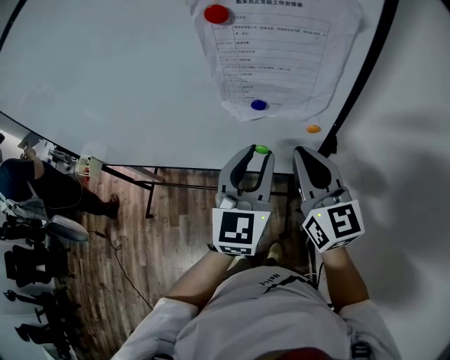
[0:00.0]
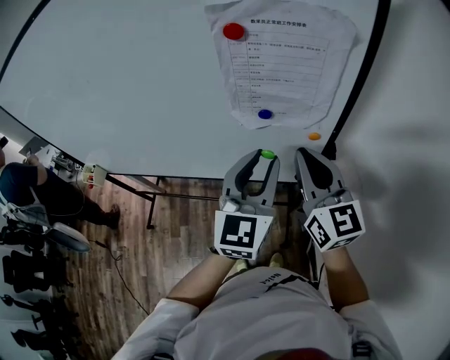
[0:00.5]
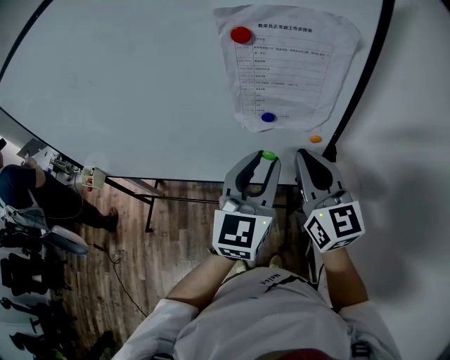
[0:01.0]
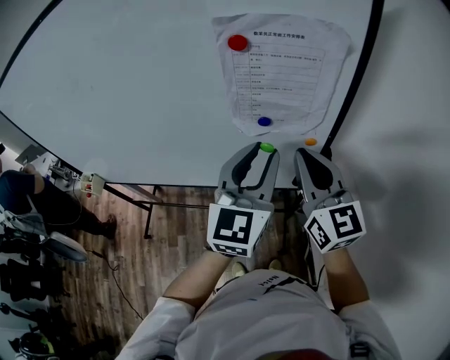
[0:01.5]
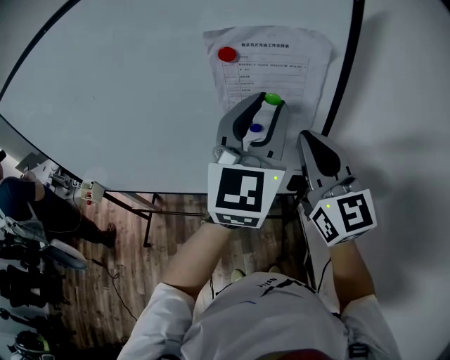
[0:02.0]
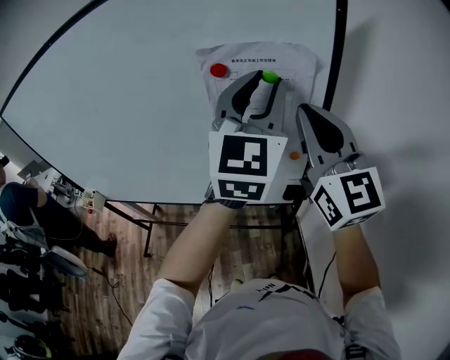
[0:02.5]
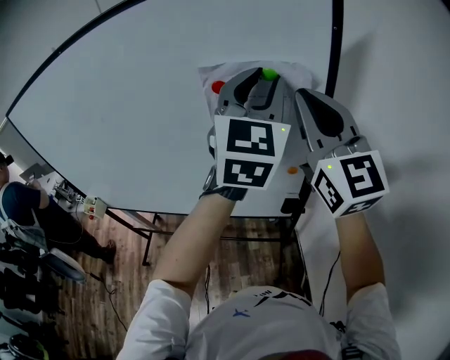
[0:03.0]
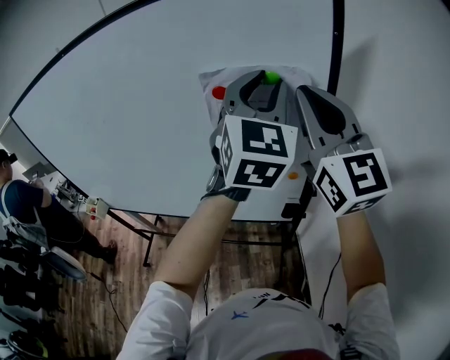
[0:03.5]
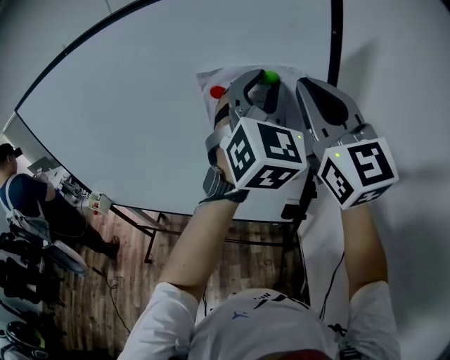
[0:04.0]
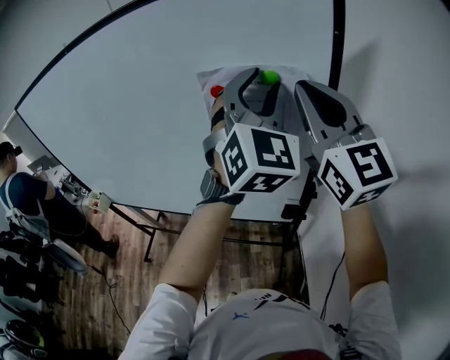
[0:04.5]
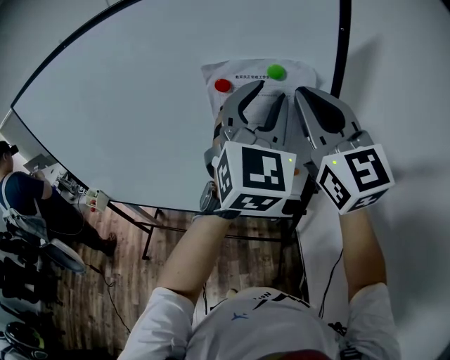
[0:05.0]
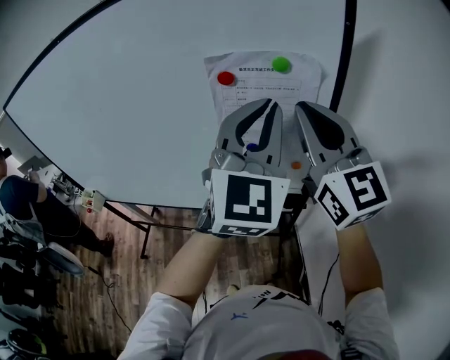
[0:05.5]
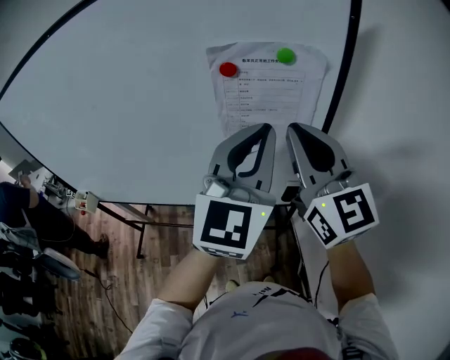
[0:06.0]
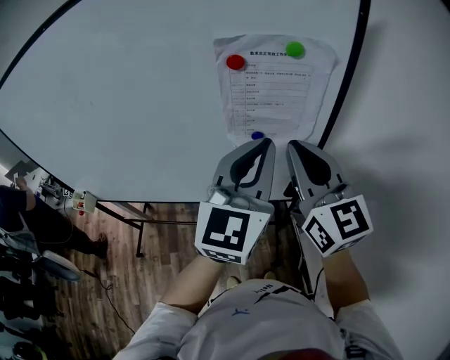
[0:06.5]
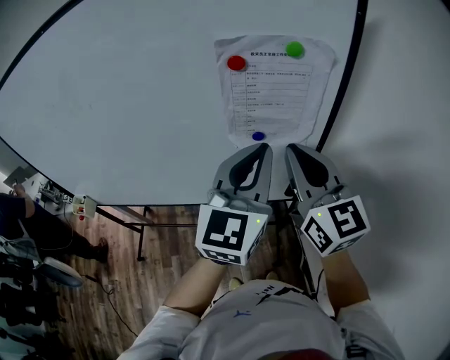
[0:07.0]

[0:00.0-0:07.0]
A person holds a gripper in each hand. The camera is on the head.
0:00.0 to 0:02.0: Both grippers move upward, approximately 15 cm.
0:02.0 to 0:03.5: The right gripper heads upward, covering some 15 cm. Meanwhile the left gripper moves upward and forward, some 10 cm.
0:03.5 to 0:05.0: The grippers make only small movements.
0:05.0 to 0:07.0: The right gripper moves downward, about 15 cm. The left gripper goes some 15 cm downward, backward and to the left, rotates some 30 degrees, and closes its fingers.

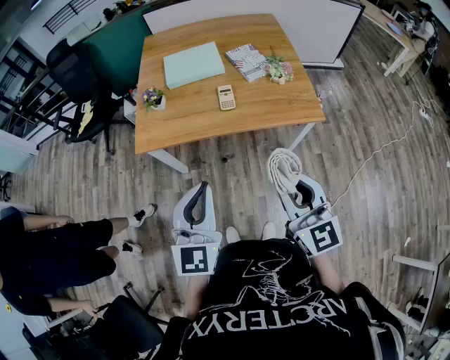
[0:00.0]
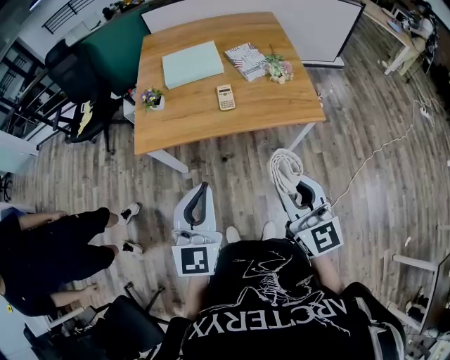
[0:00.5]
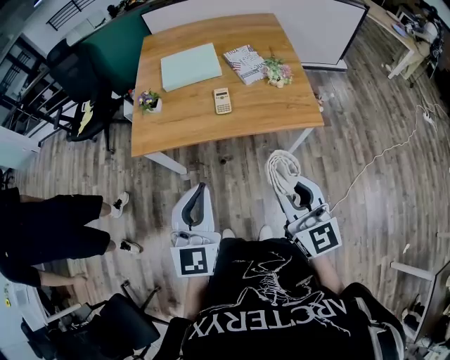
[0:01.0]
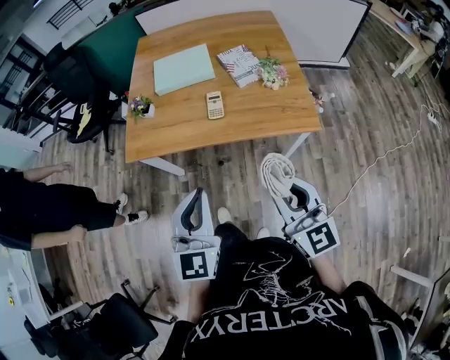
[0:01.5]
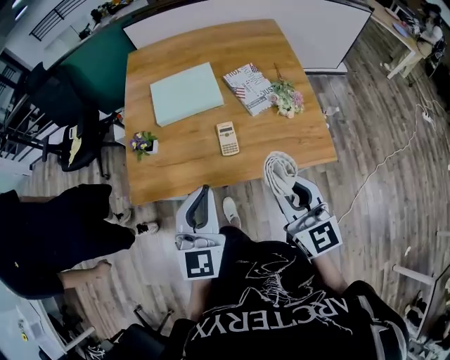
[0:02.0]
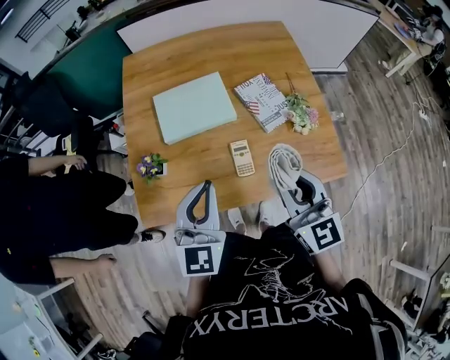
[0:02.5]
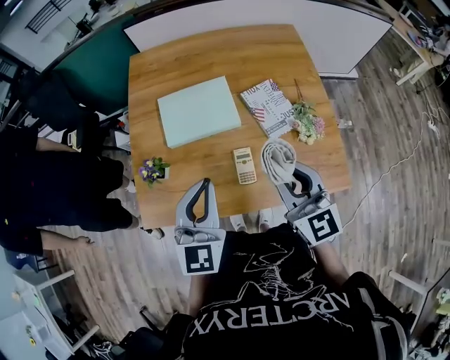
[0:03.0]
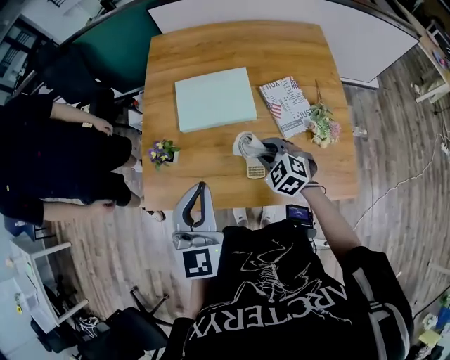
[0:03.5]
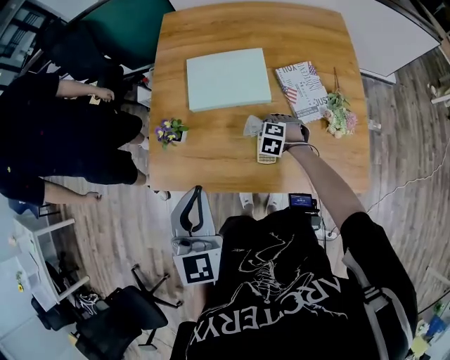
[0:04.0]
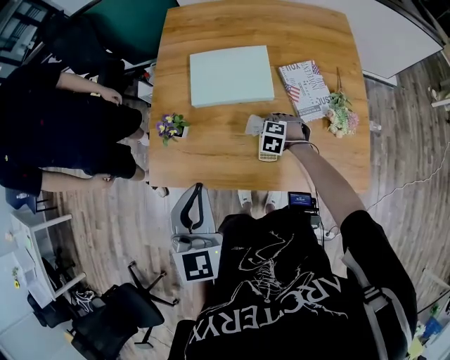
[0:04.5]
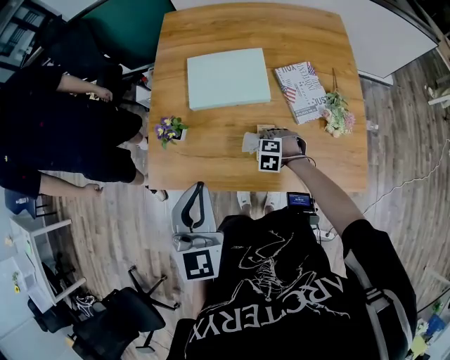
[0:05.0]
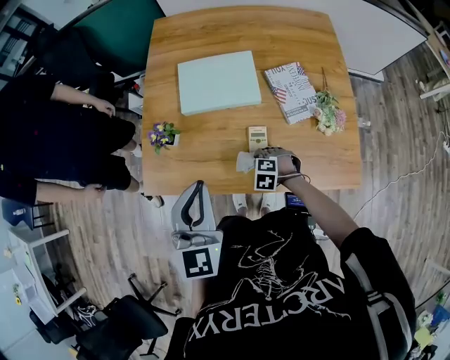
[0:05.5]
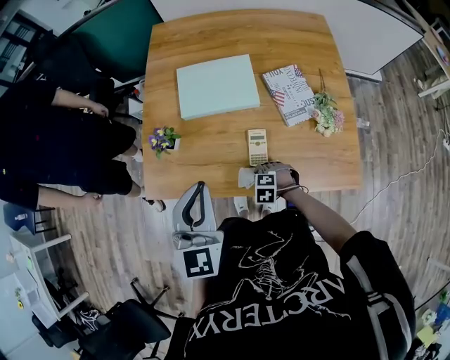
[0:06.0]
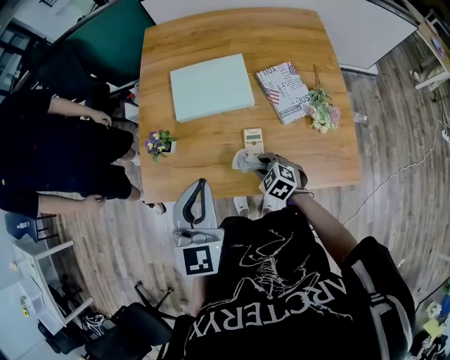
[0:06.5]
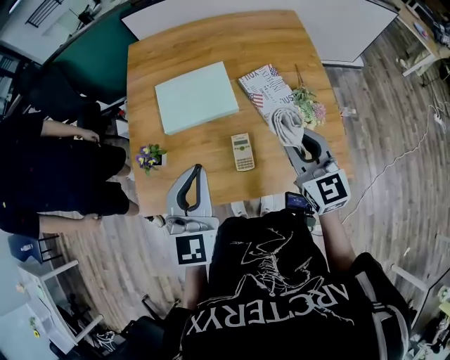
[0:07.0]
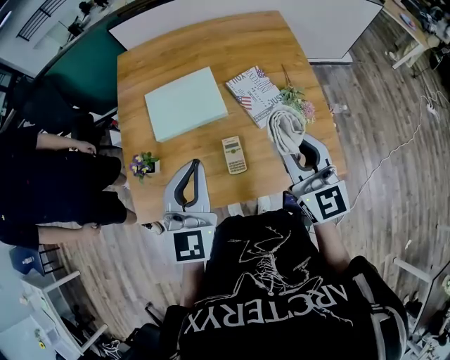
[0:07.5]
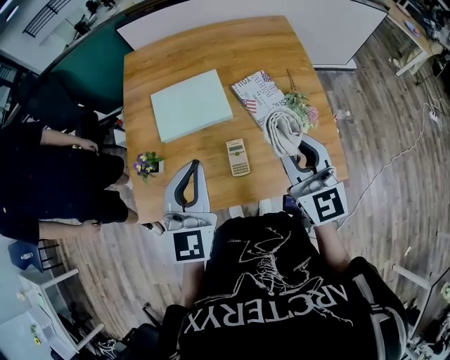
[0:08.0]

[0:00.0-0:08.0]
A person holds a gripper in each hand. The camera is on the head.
0:00.0 to 0:02.0: Both grippers travel together forward, roughly 25 cm.
0:02.0 to 0:04.0: The left gripper heads forward and to the left, covering some 15 cm. The right gripper is displaced downward and forward by some 50 cm, and angles its fingers downward, by some 60 degrees.
0:04.0 to 0:06.0: The right gripper shifts by approximately 20 cm.
0:06.0 to 0:08.0: The left gripper moves some 10 cm; the right gripper is displaced upward by about 40 cm, and tips its fingers upward by approximately 80 degrees.

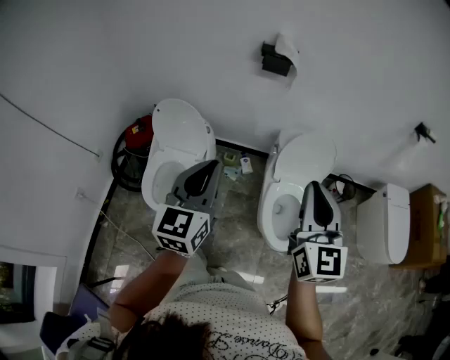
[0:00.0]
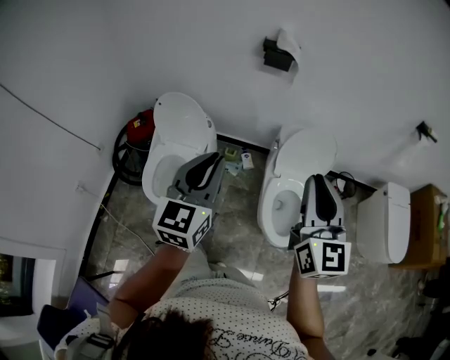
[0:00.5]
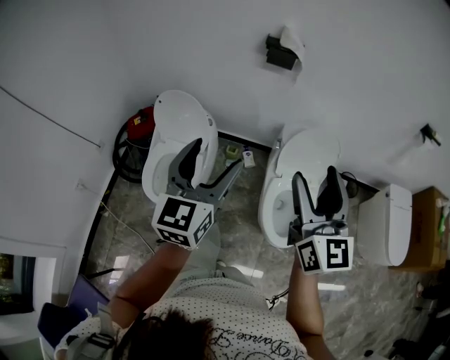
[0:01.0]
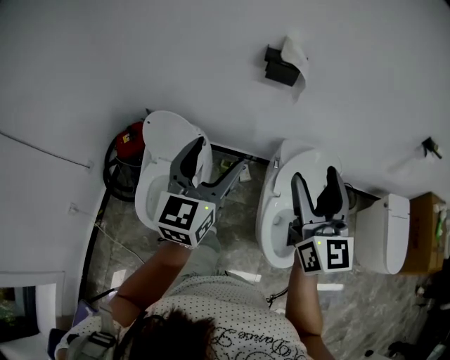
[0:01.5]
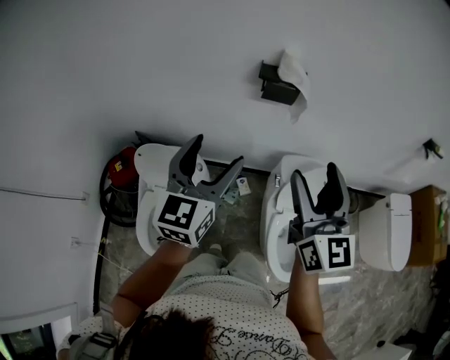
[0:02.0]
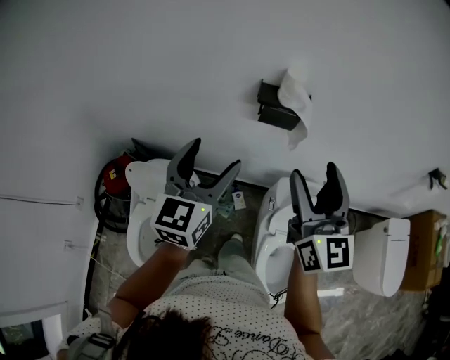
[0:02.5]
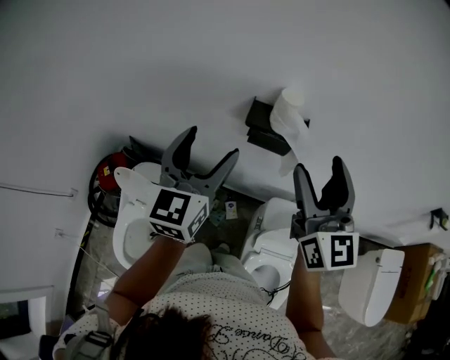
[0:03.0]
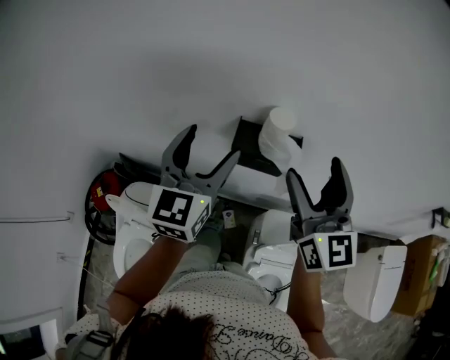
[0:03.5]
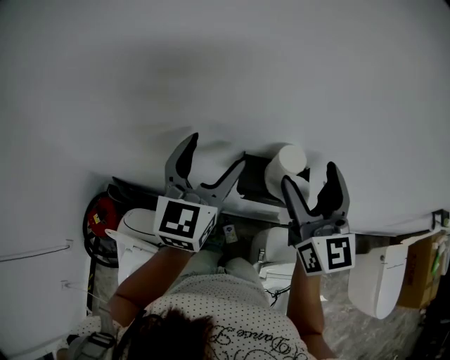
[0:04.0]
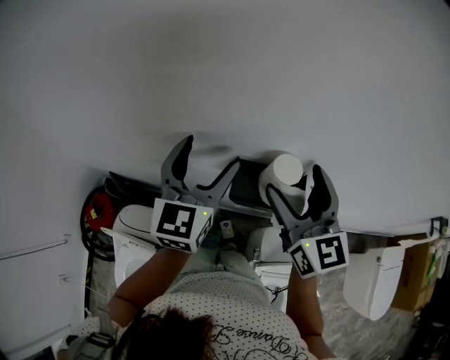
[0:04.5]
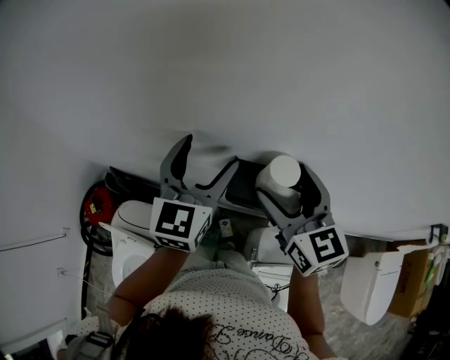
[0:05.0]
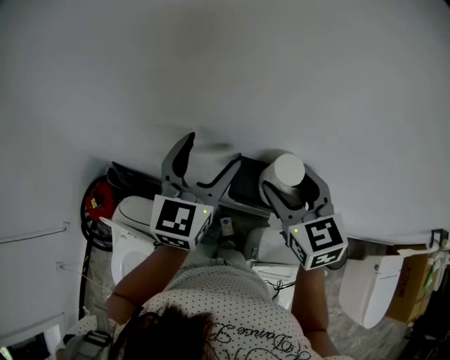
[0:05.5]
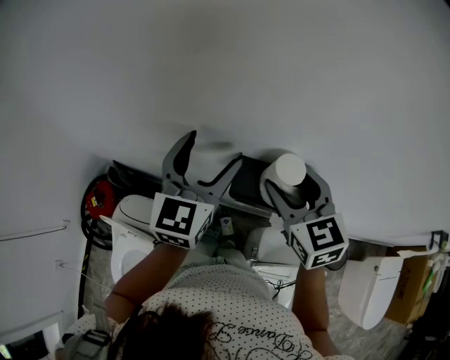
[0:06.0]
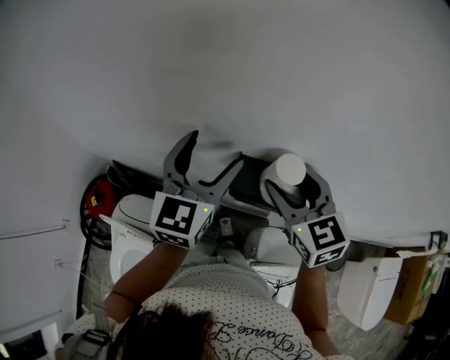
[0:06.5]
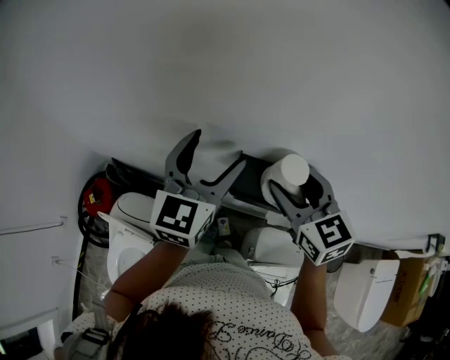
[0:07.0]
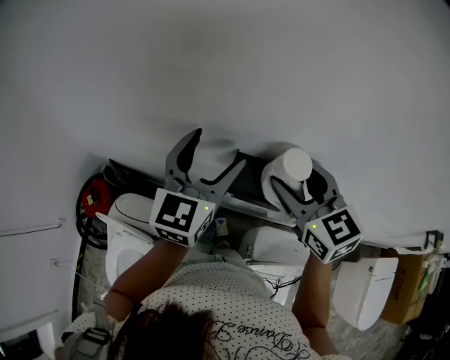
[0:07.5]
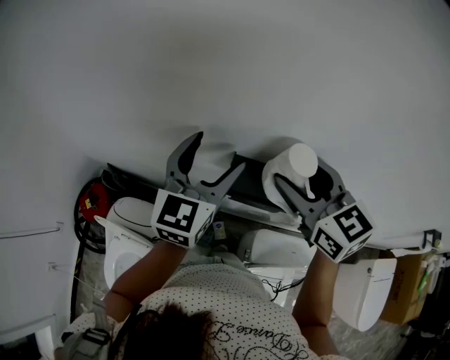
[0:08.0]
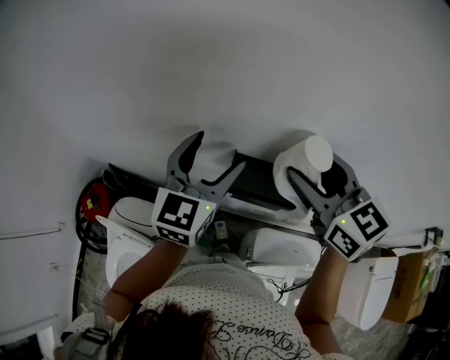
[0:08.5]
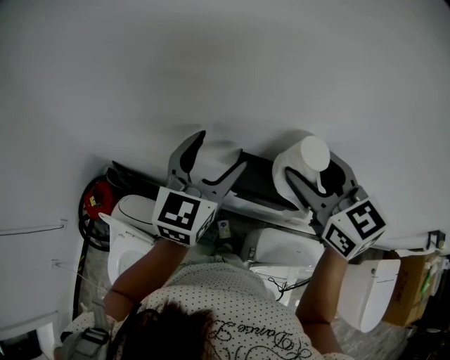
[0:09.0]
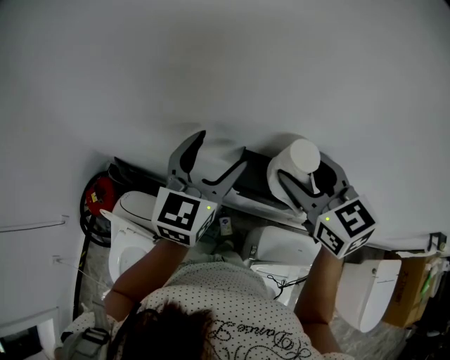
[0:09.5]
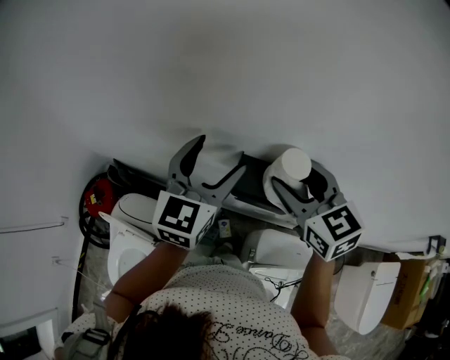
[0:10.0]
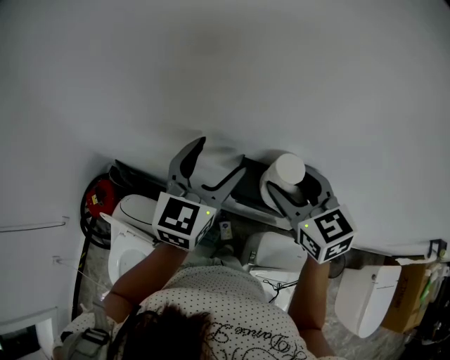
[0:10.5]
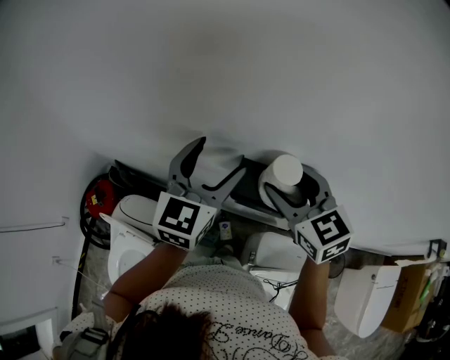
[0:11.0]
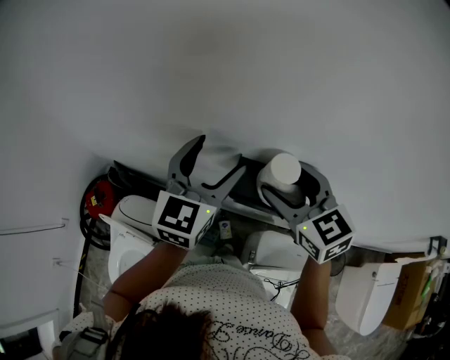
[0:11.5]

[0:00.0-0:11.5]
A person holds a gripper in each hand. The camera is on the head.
0:00.0 to 0:02.0: Both grippers travel together forward, roughly 30 cm. The left gripper opens up. The right gripper opens its fingers.
0:02.0 to 0:04.0: The two grippers go approximately 40 cm forward.
0:04.0 to 0:06.0: The right gripper goes about 5 cm downward, and rotates about 30 degrees.
0:06.0 to 0:07.5: The grippers stay close to where they were, moving slightly.
0:07.5 to 0:11.5: The grippers move only a little.
